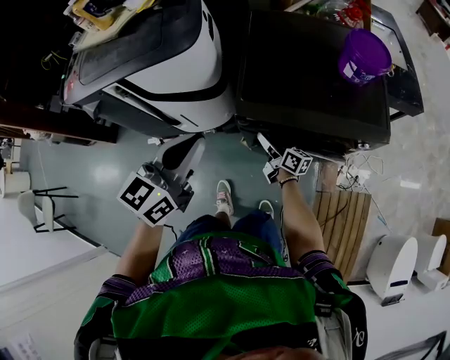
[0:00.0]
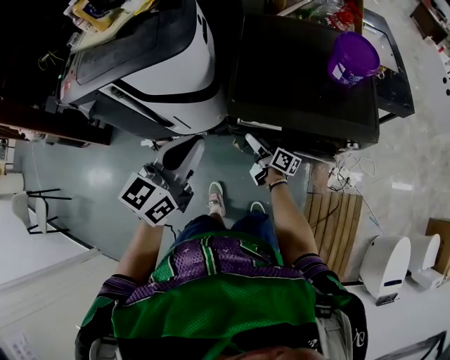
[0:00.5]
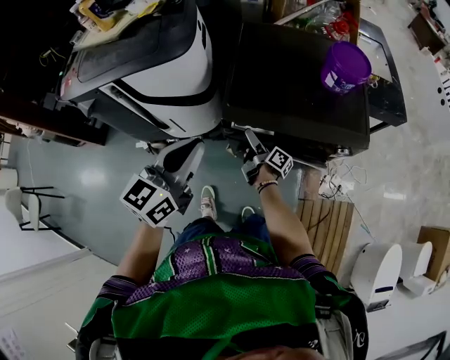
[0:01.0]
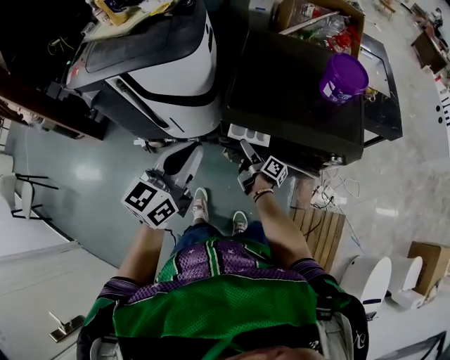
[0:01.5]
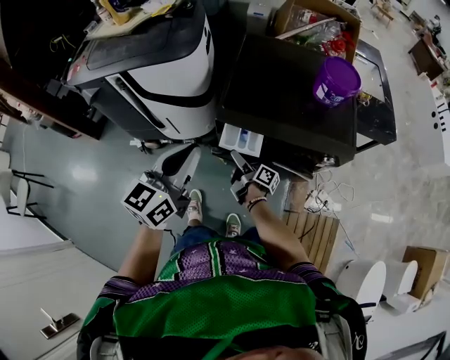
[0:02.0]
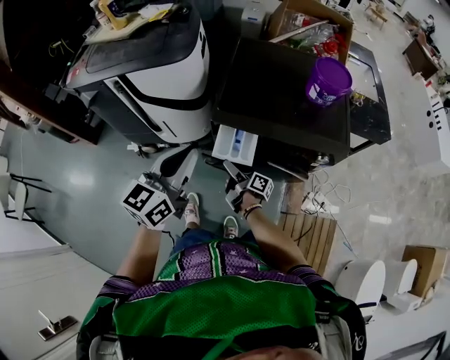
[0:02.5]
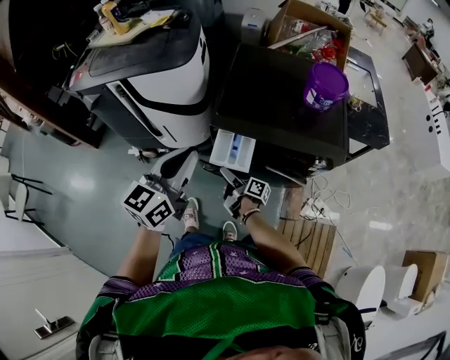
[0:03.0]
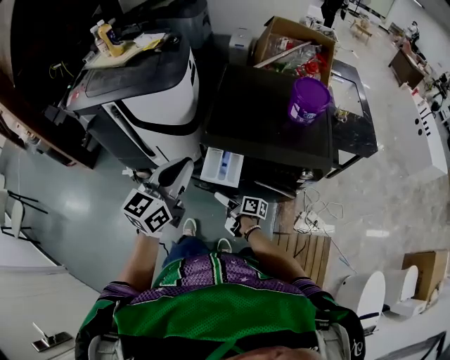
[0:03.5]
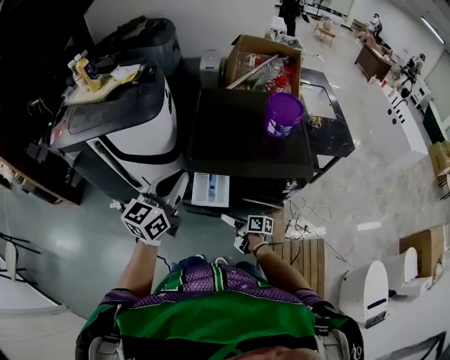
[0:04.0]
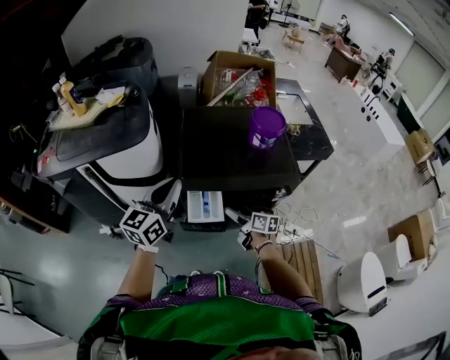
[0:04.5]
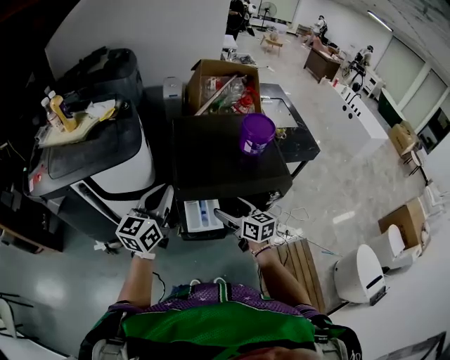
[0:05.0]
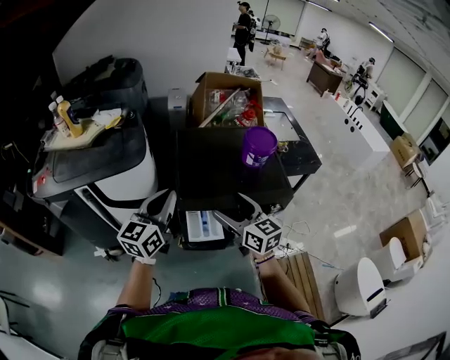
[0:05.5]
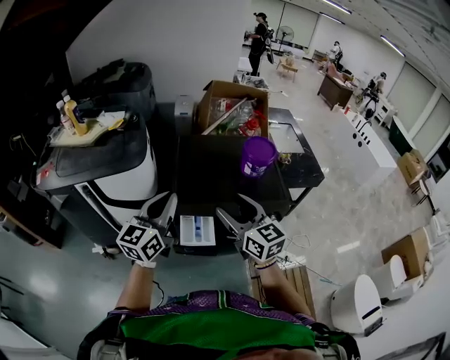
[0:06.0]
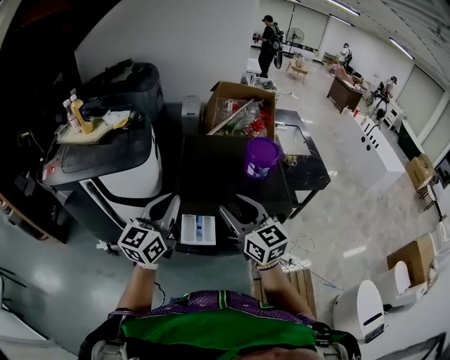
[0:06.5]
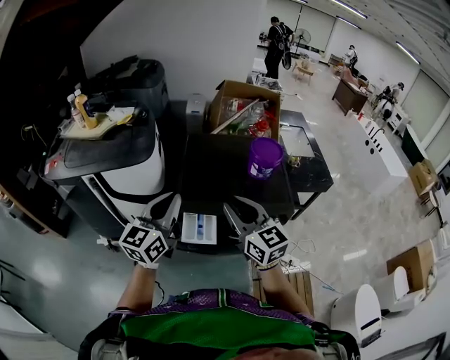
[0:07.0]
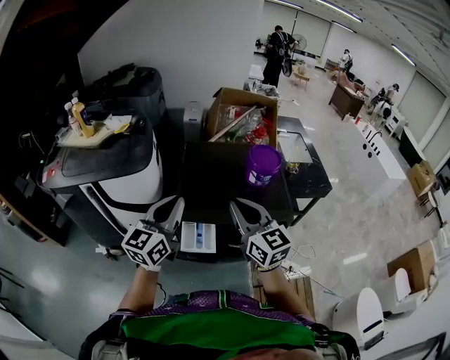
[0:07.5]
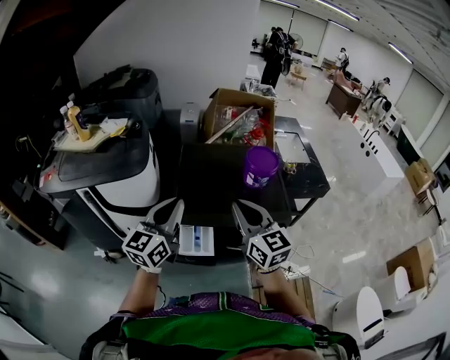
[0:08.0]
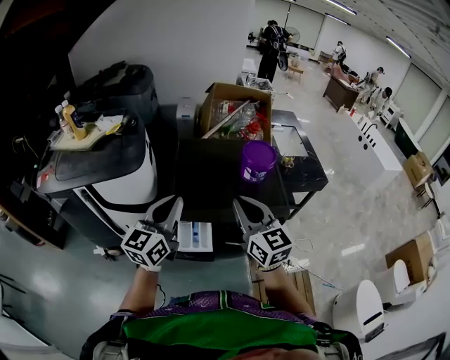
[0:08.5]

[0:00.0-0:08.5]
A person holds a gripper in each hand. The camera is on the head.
0:00.0 to 0:02.0: Both grippers travel together backward, about 5 cm. The right gripper changes its angle by roughly 30 degrees, and opens.
0:02.0 to 0:04.0: The left gripper shifts by about 5 cm. The right gripper is displaced backward and to the right by about 10 cm, and changes its angle by approximately 20 degrees.
0:04.0 to 0:06.5: The left gripper shifts approximately 5 cm upward, while the right gripper goes about 40 cm upward, rotates around the line of its fingers by approximately 60 degrees, counterclockwise from behind, and closes its fingers.
0:06.5 to 0:08.5: The right gripper closes up.

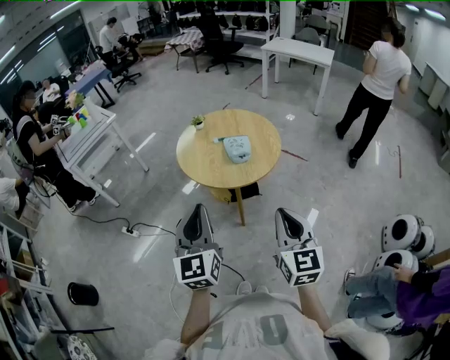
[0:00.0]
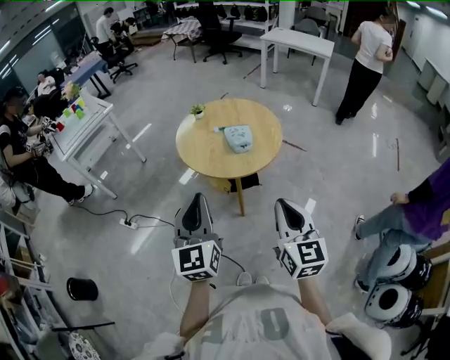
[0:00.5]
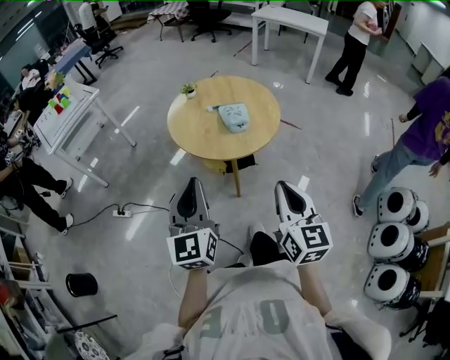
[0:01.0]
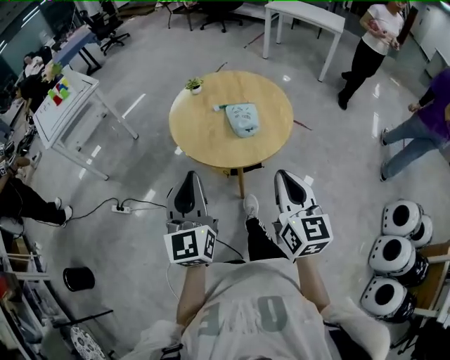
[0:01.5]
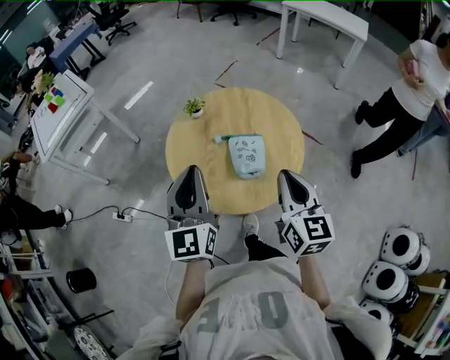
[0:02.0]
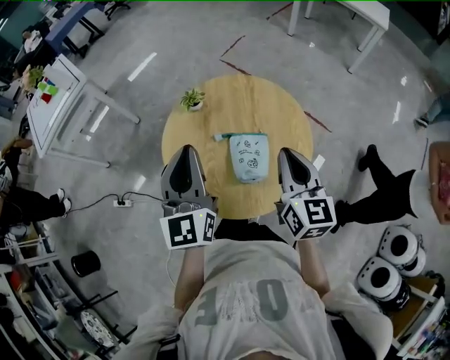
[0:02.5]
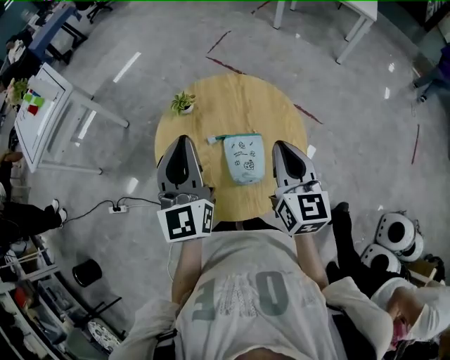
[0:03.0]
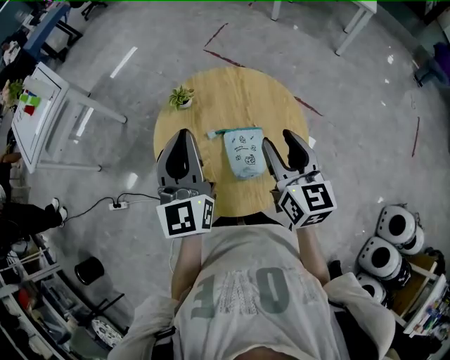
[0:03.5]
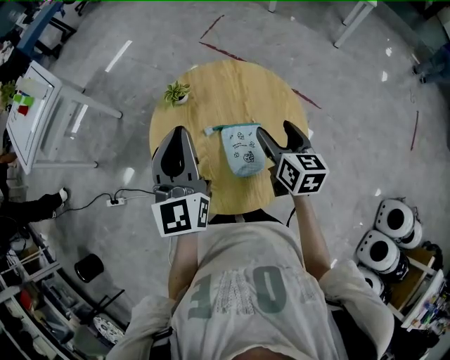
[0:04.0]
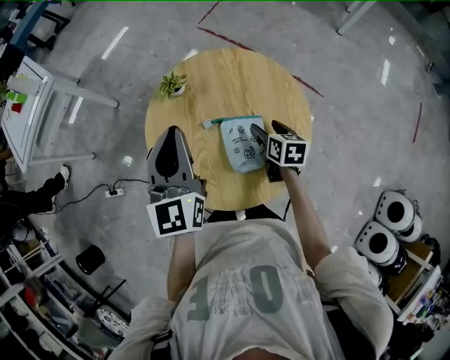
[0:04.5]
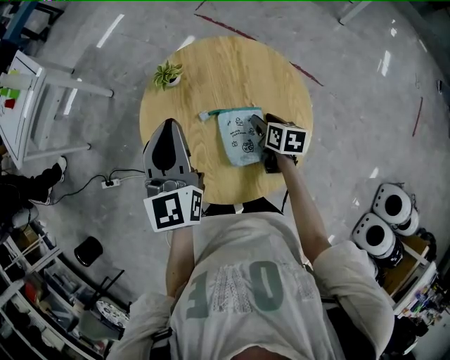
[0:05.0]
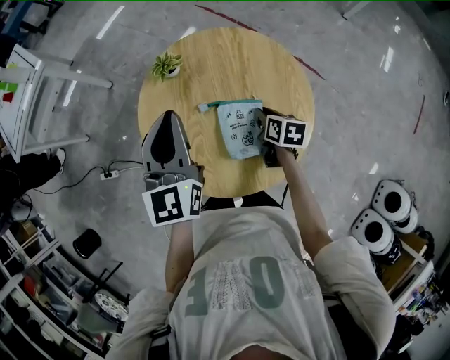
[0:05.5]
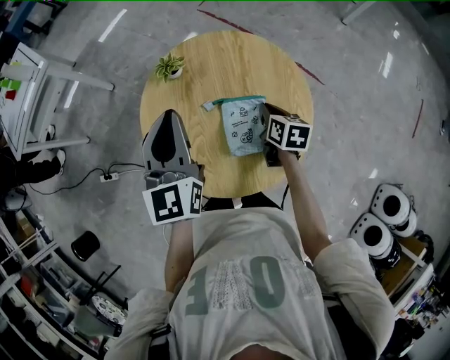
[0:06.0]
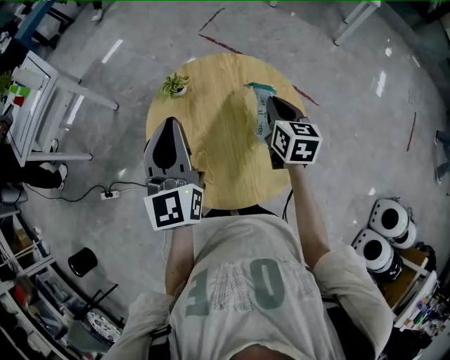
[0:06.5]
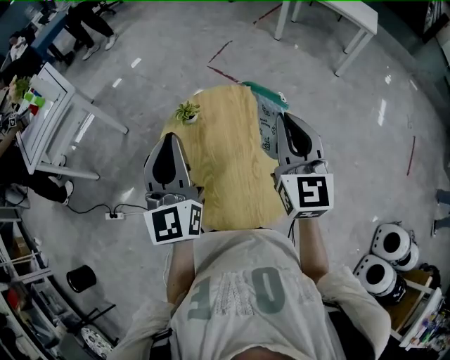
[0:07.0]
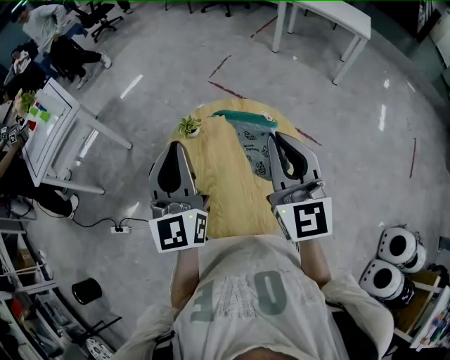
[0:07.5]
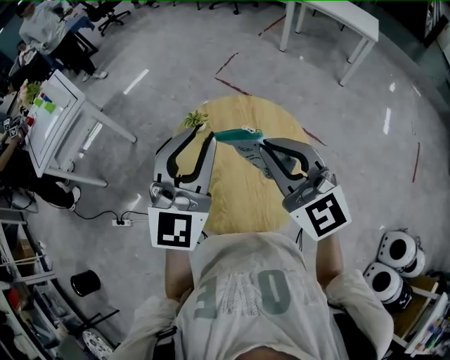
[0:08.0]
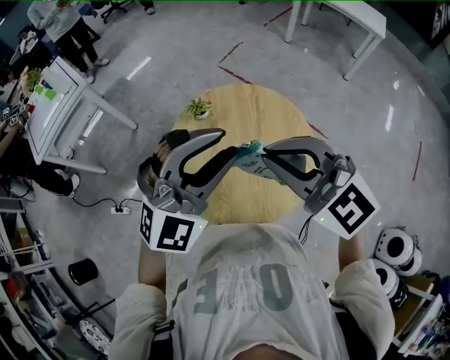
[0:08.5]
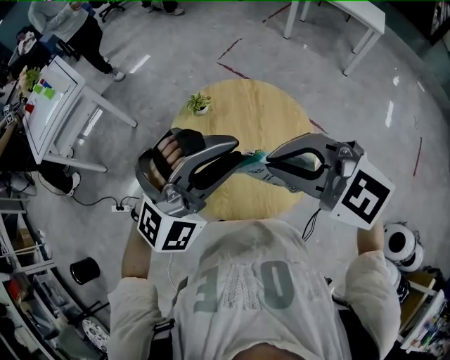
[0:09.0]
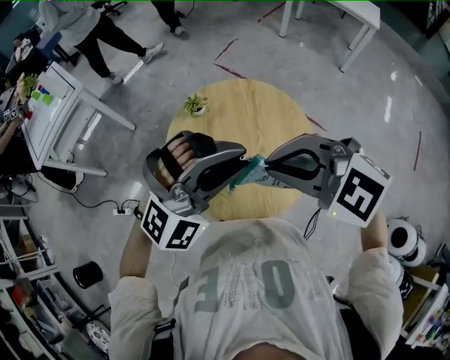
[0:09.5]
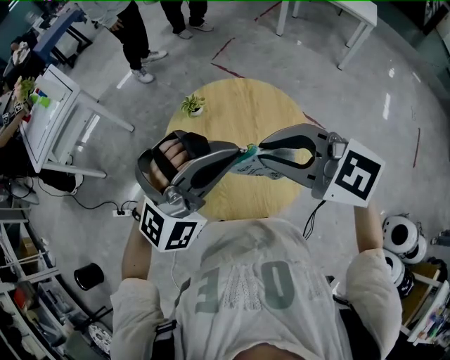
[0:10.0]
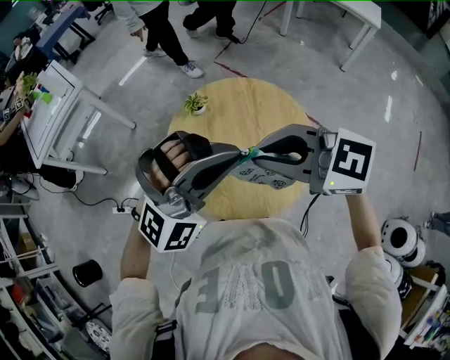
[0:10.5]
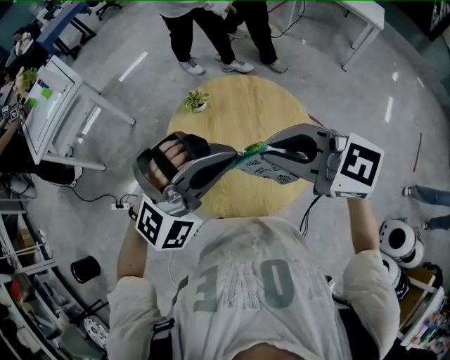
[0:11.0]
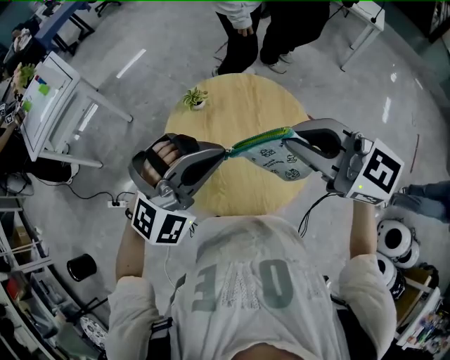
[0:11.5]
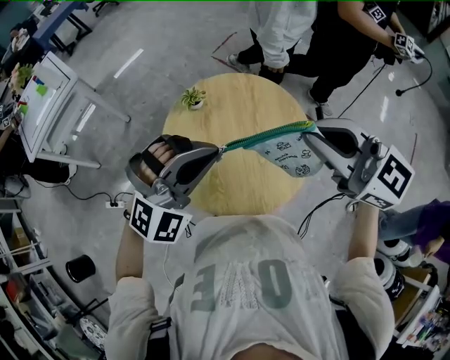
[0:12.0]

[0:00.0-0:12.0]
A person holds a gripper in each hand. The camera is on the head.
0:00.0 to 0:02.0: Both grippers move forward, roughly 35 cm.
0:02.0 to 0:04.0: The right gripper goes approximately 20 cm forward and downward, and opens its fingers. The left gripper shifts about 15 cm forward.
0:04.0 to 0:06.0: The left gripper ends up some 5 cm from where it was; the right gripper is displaced downward by approximately 15 cm, rotates some 20 degrees, and closes its fingers.
0:06.0 to 0:08.0: The left gripper shifts roughly 15 cm upward, and swivels about 40 degrees. Meanwhile the right gripper moves upward, approximately 35 cm, and tips its fingers upward by about 40 degrees.
0:08.0 to 0:10.0: Both grippers travel together backward, about 5 cm. The right gripper turns by approximately 40 degrees; the left gripper rolls clockwise, seen from behind, by some 50 degrees.
0:10.0 to 0:12.0: The right gripper moves some 10 cm. Meanwhile the left gripper goes approximately 5 cm downward.

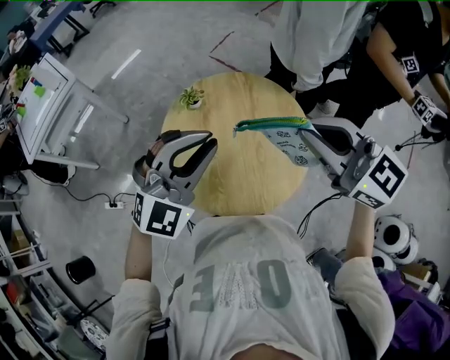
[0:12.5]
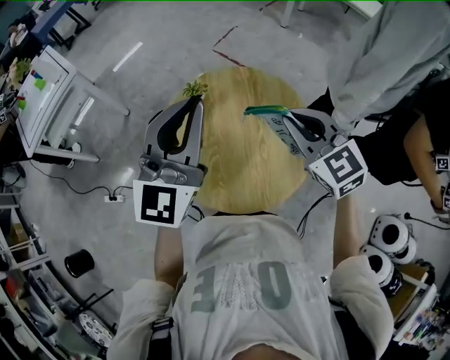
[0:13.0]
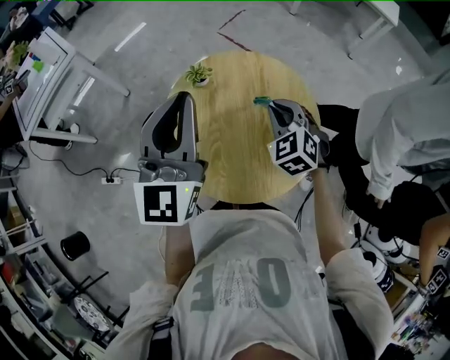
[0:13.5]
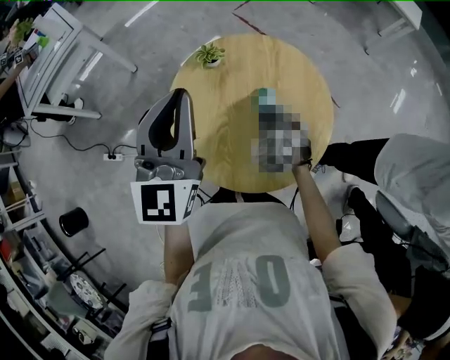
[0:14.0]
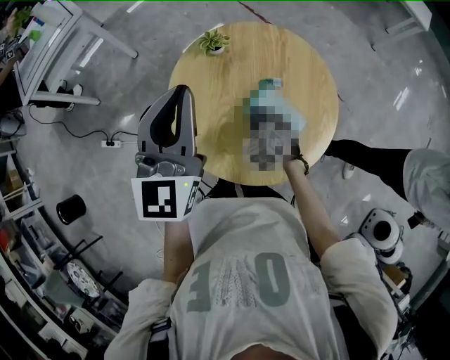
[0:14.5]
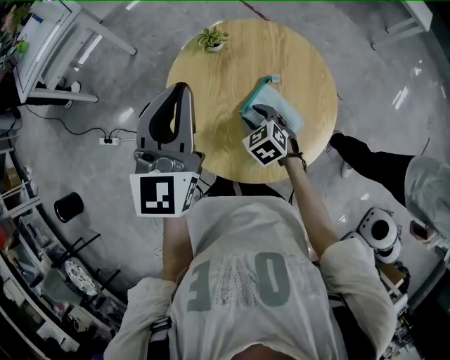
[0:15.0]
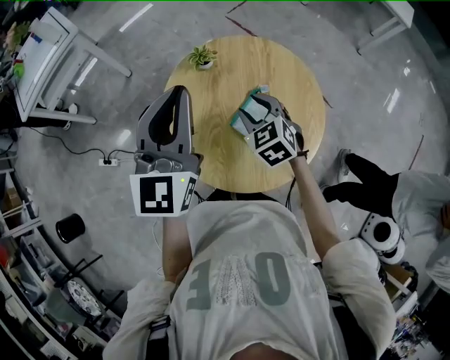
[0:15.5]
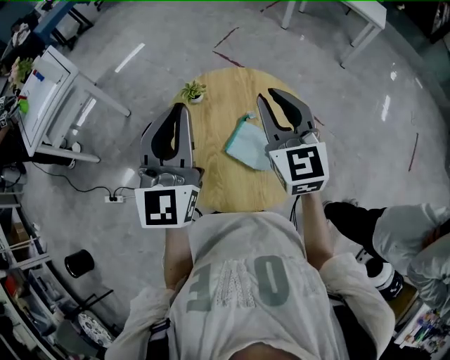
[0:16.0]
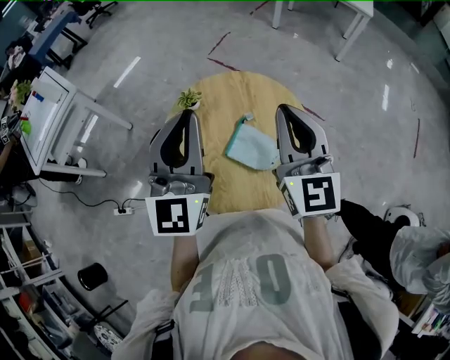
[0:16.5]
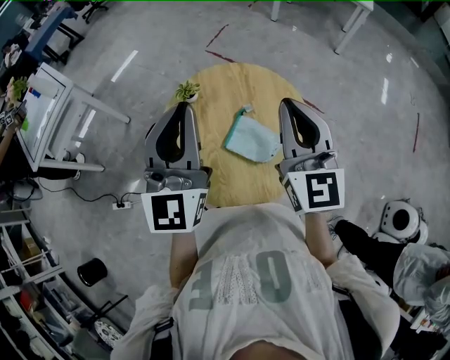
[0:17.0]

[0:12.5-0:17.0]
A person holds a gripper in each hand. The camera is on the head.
0:12.5 to 0:14.5: The left gripper heads to the left, covering roughly 10 cm, and rotates some 60 degrees. Meanwhile the right gripper travels downward by some 35 cm, and points its fingers some 40 degrees further downward.
0:14.5 to 0:17.0: The right gripper moves upward, some 35 cm, points its fingers roughly 50 degrees further upward, and opens, then closes again. Meanwhile the left gripper travels upward and to the right by about 10 cm.

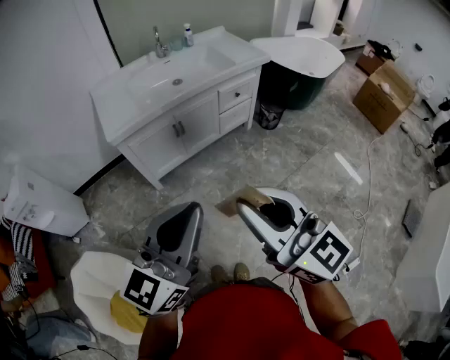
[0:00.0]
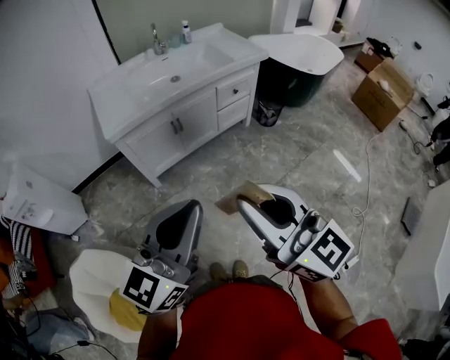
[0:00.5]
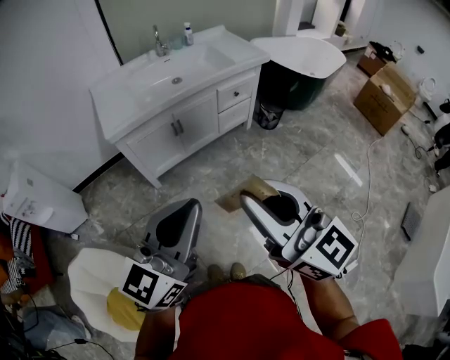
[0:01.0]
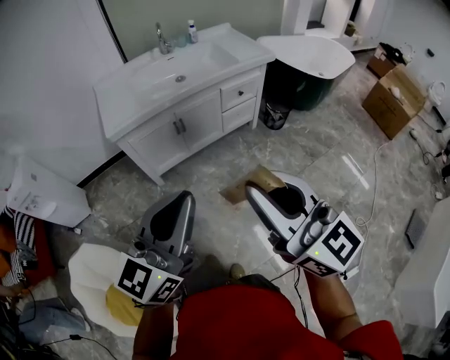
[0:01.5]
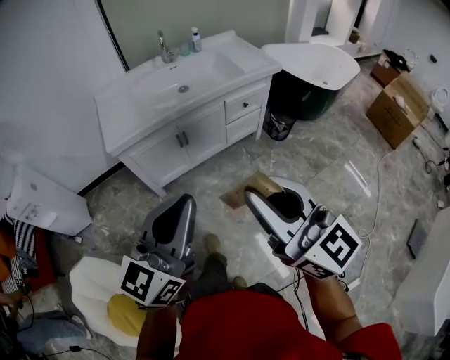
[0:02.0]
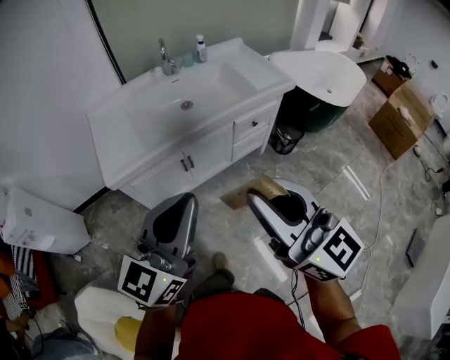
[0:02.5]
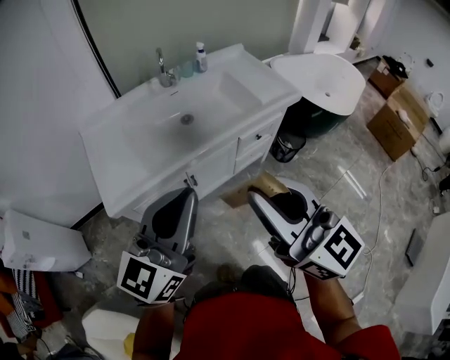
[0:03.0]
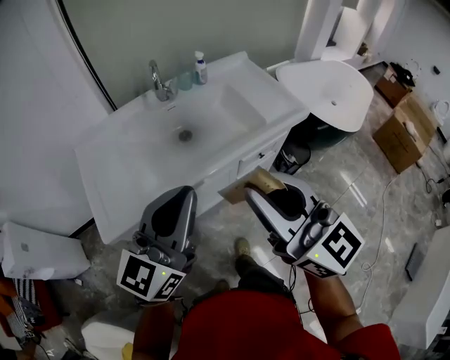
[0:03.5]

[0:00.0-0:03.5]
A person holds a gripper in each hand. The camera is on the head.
0:00.0 to 0:02.0: The right gripper travels forward and to the right by roughly 10 cm, while the left gripper heads forward, covering approximately 10 cm.
0:02.0 to 0:03.5: The grippers both shift forward by some 35 cm.
